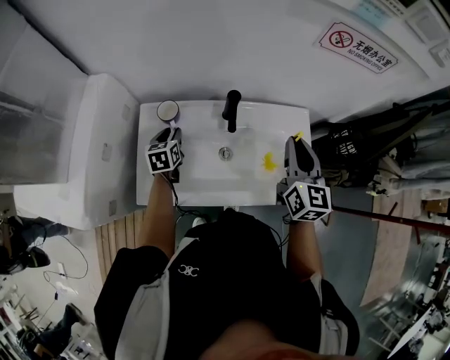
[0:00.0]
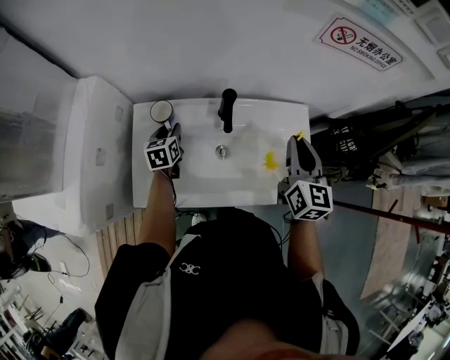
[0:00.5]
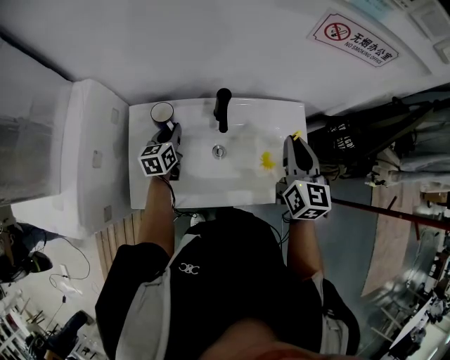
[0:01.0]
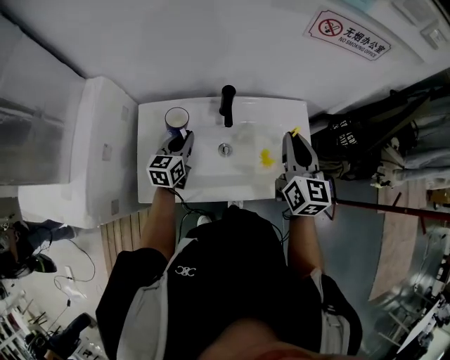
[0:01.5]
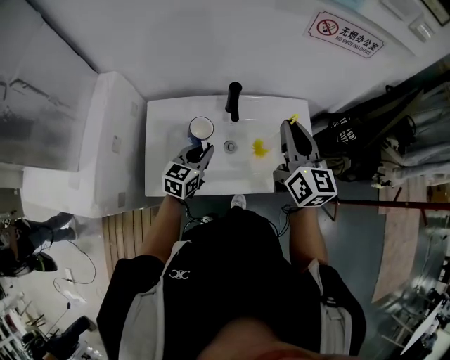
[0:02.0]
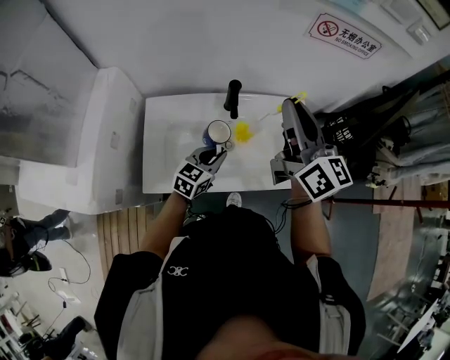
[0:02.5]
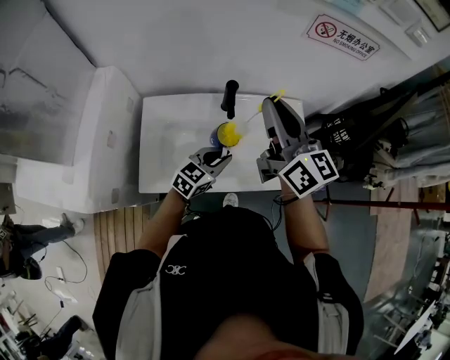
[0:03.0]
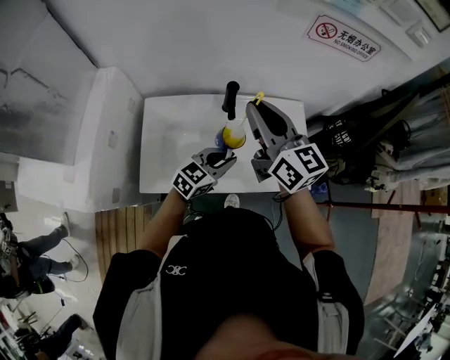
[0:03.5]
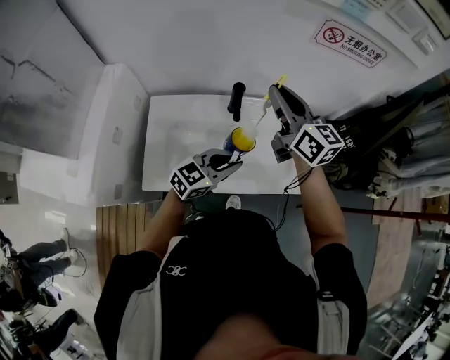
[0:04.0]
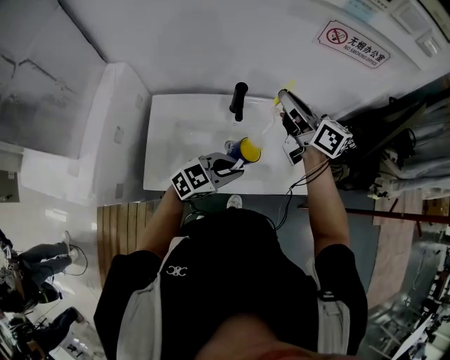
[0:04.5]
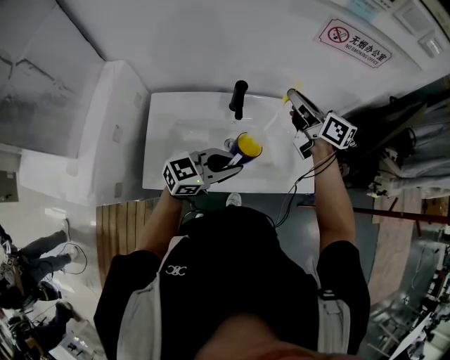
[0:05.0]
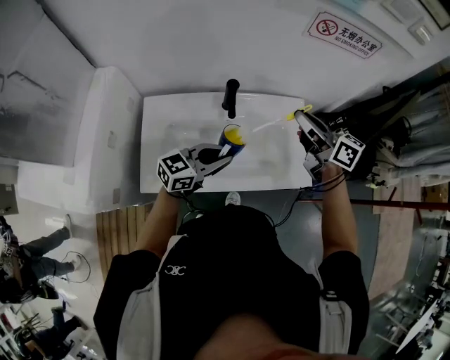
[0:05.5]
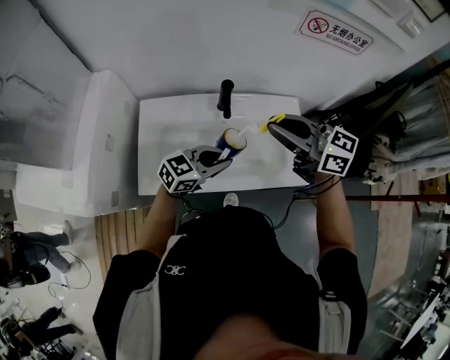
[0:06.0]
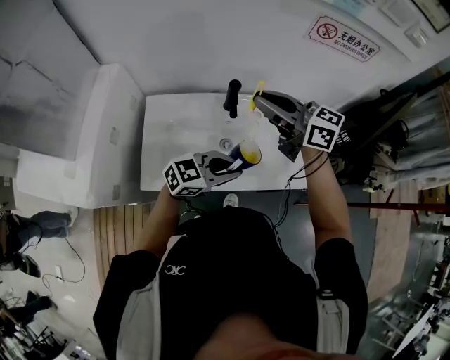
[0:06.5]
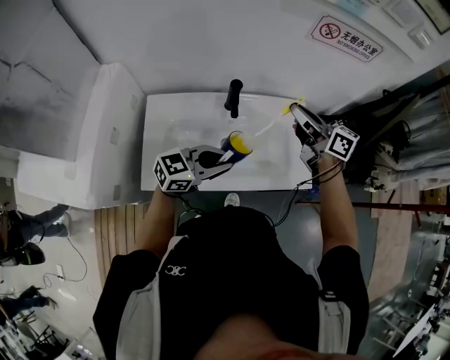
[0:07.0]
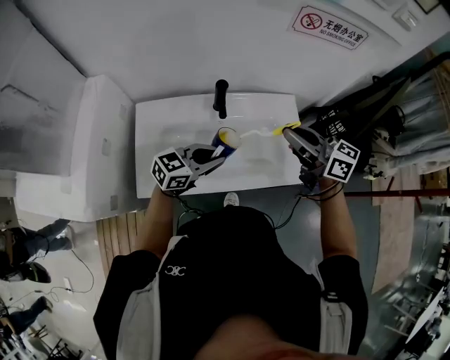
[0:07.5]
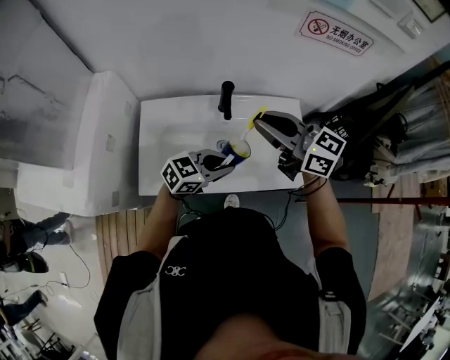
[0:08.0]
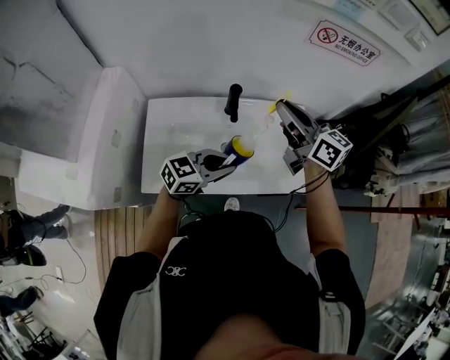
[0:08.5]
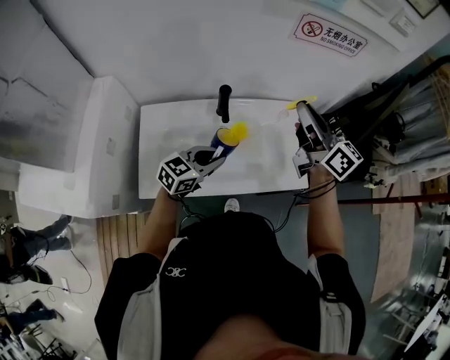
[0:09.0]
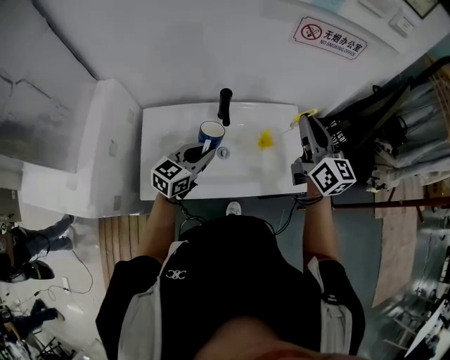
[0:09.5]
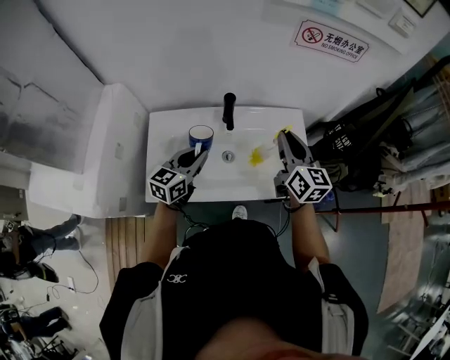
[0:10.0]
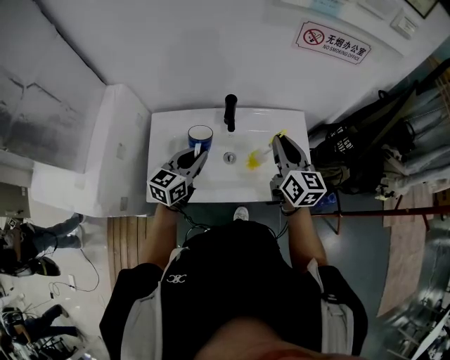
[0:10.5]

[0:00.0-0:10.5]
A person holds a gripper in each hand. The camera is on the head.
0:00.0 to 0:02.0: The left gripper heads to the right, backward and upward, covering about 15 cm, swivels some 40 degrees, and closes its fingers. The right gripper is displaced upward by some 5 cm.
0:02.0 to 0:04.0: The left gripper goes about 10 cm to the right and upward, and turns by some 30 degrees. Meanwhile the right gripper heads to the left and forward, covering about 10 cm.
0:04.0 to 0:06.5: The right gripper turns by some 30 degrees.
0:06.5 to 0:08.5: The right gripper changes its angle by about 20 degrees.
0:08.5 to 0:10.5: The left gripper goes some 10 cm to the left, and rotates some 40 degrees. Meanwhile the right gripper goes roughly 10 cm downward and to the right, and rotates approximately 20 degrees.

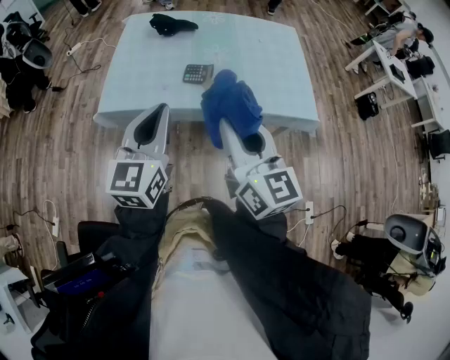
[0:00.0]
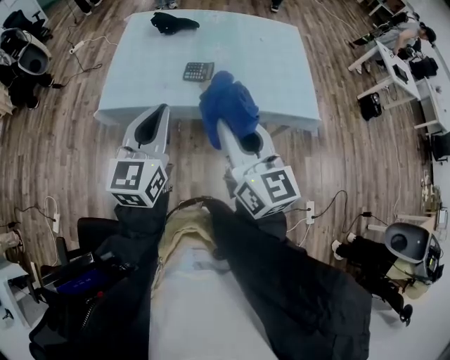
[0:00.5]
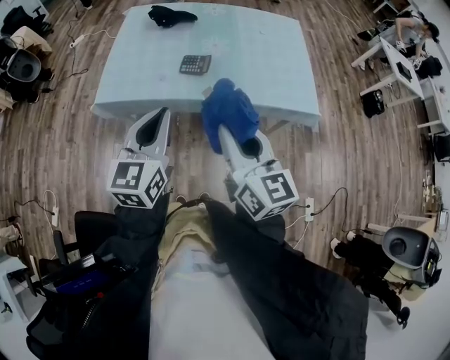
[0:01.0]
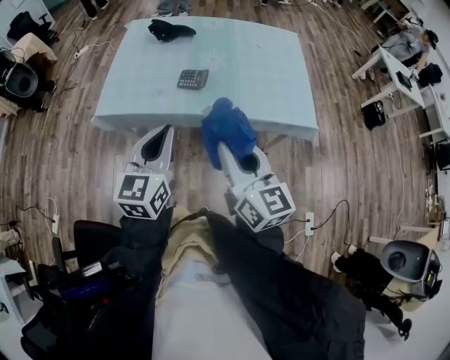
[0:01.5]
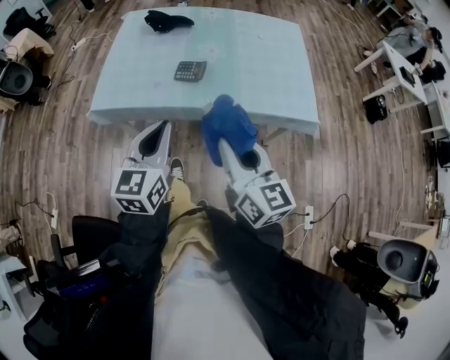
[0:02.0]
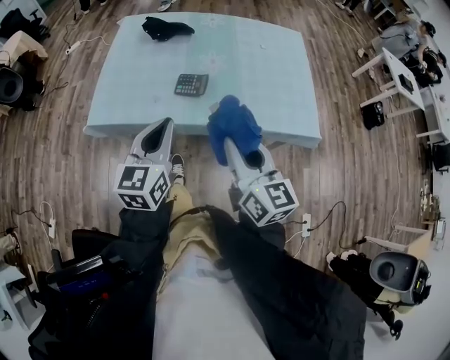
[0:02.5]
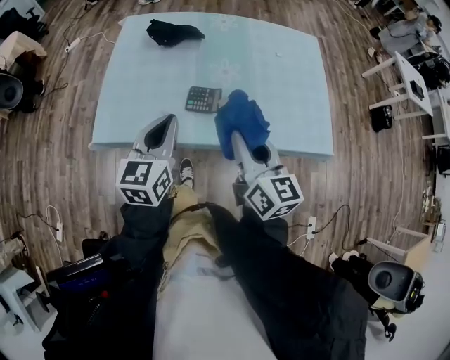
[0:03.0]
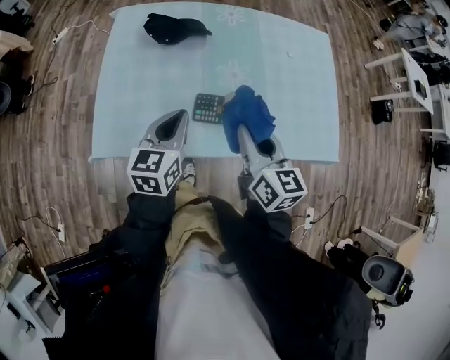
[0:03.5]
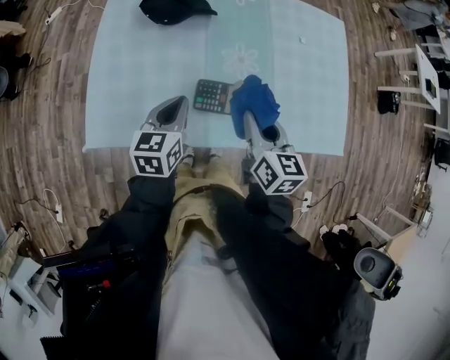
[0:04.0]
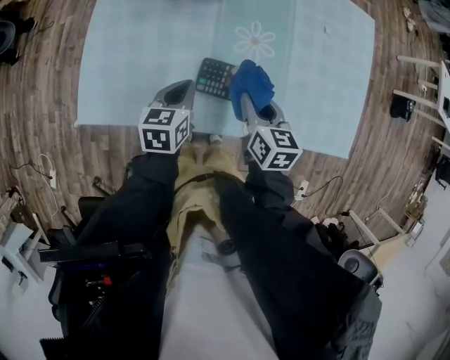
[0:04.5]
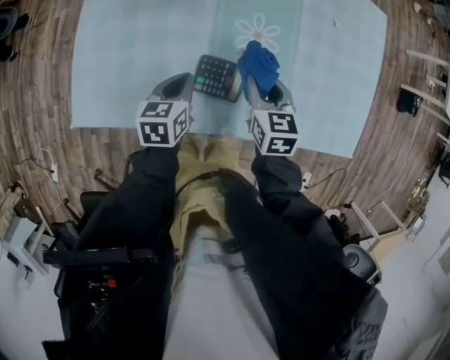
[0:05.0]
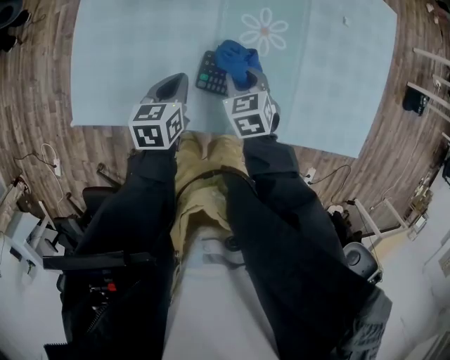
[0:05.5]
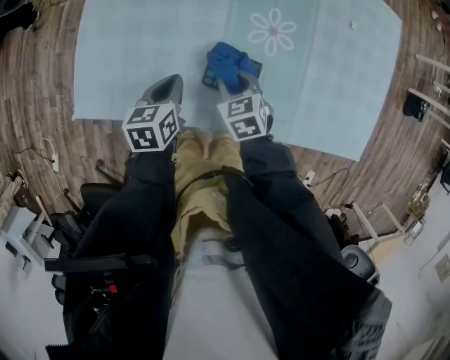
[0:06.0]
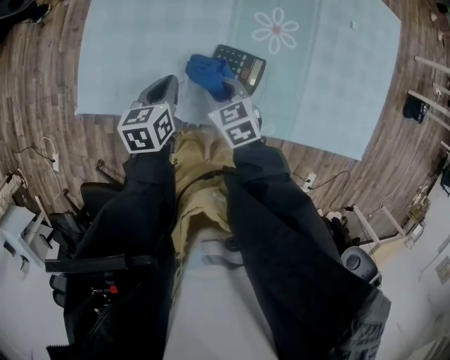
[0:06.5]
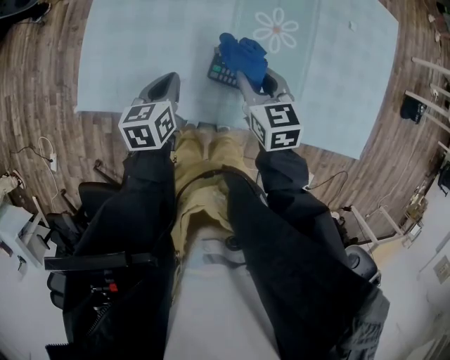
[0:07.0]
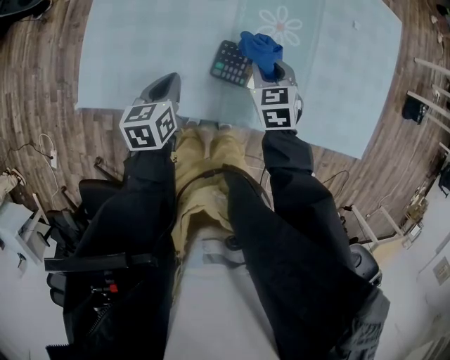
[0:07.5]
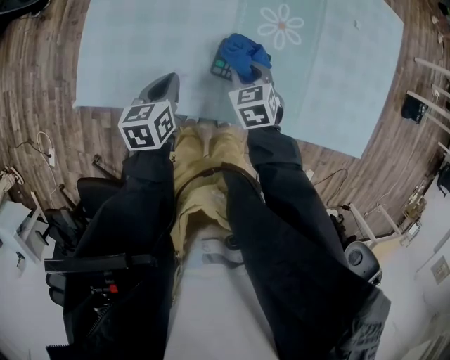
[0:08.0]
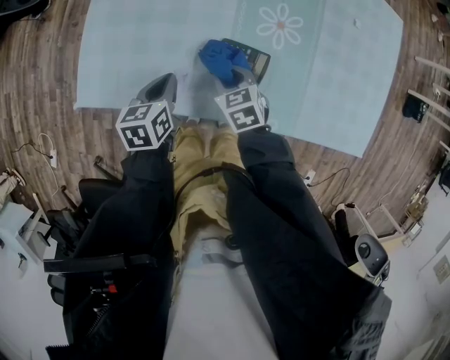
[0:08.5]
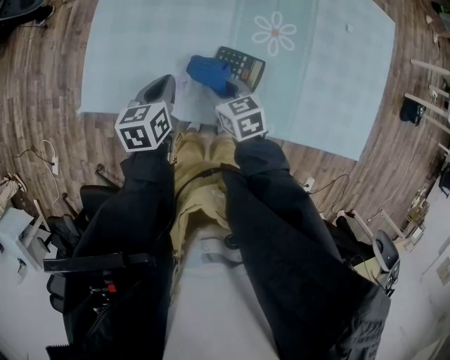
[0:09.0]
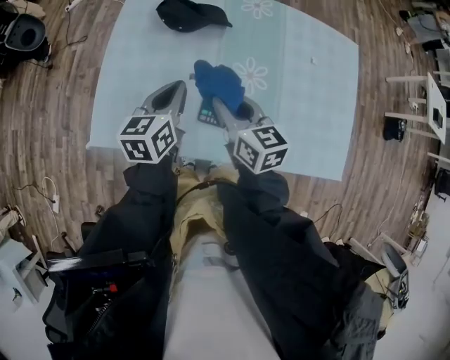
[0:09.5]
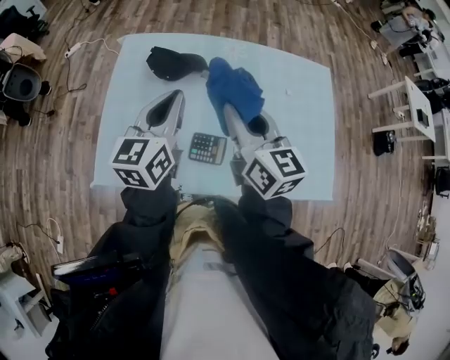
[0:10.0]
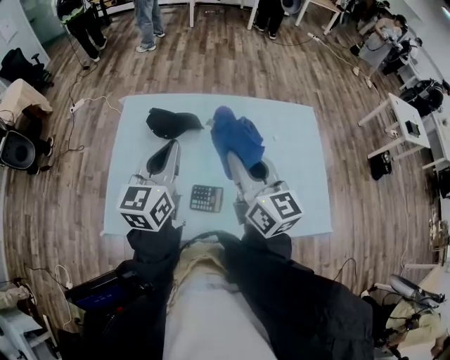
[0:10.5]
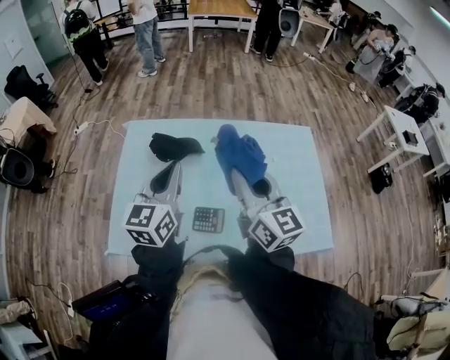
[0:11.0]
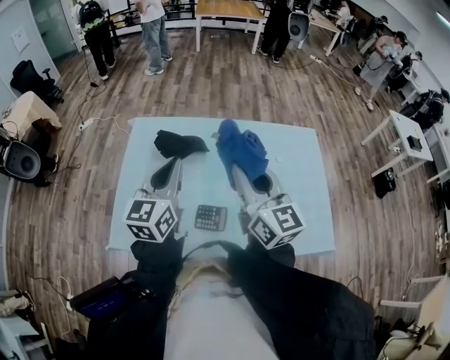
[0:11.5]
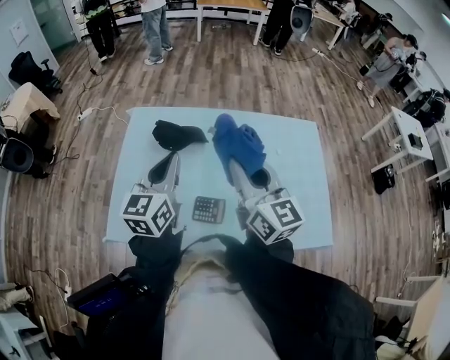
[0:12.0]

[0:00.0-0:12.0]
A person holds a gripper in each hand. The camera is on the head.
0:00.0 to 0:02.0: Both grippers move downward and to the right, approximately 10 cm.
0:02.0 to 0:04.0: The left gripper heads forward and downward, covering roughly 40 cm, and swivels some 20 degrees. The right gripper is displaced forward by approximately 35 cm, and rotates roughly 30 degrees.
0:04.0 to 0:06.0: The left gripper heads downward and to the left, covering about 15 cm, and rotates about 20 degrees. Meanwhile the right gripper goes about 25 cm downward and to the left, and turns by some 50 degrees.
0:06.0 to 0:08.0: The right gripper moves left and right over roughly 10 cm, changing direction 2 times.
0:08.0 to 0:10.0: Both grippers move upward, approximately 35 cm. The left gripper points its fingers approximately 40 degrees further upward; the right gripper tilts its fingers approximately 50 degrees upward.
0:10.0 to 0:12.0: The right gripper travels upward by approximately 5 cm.

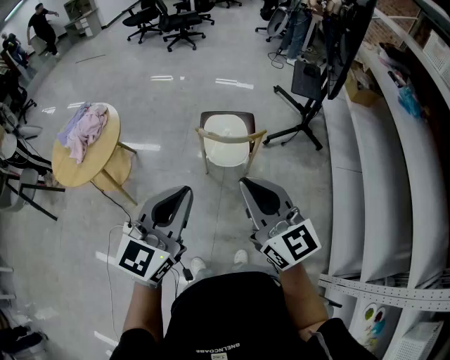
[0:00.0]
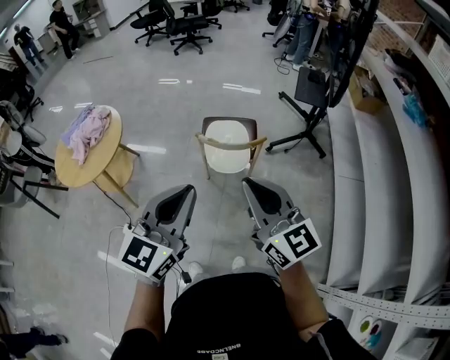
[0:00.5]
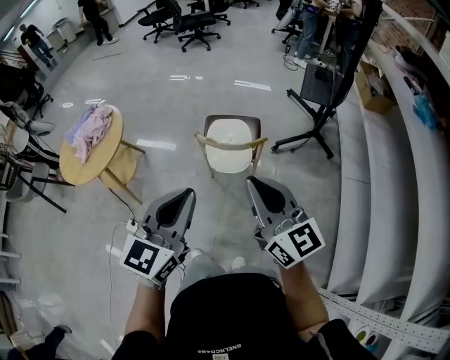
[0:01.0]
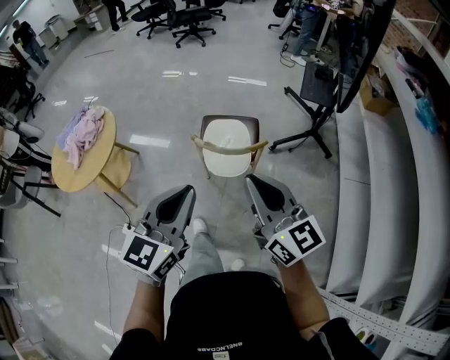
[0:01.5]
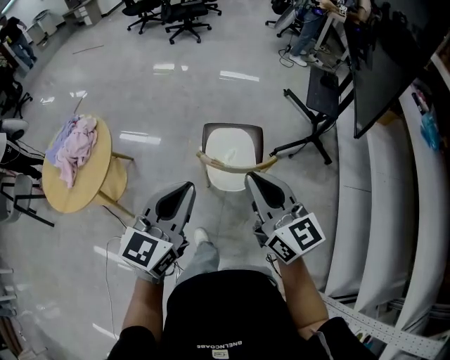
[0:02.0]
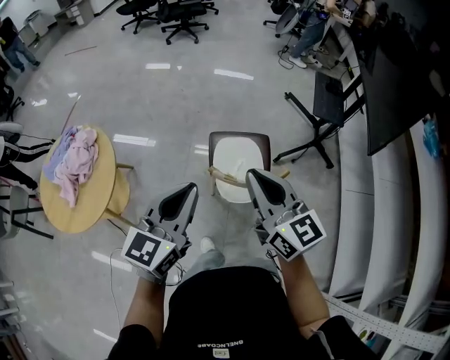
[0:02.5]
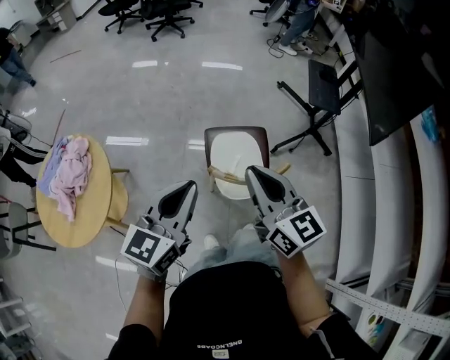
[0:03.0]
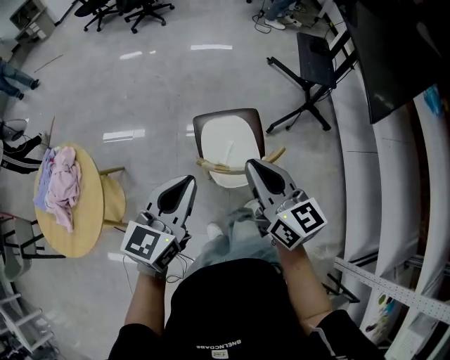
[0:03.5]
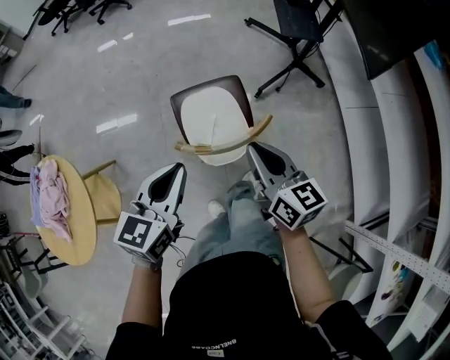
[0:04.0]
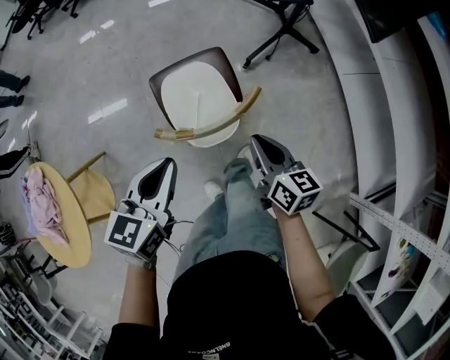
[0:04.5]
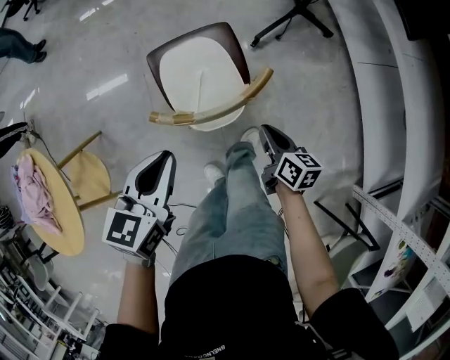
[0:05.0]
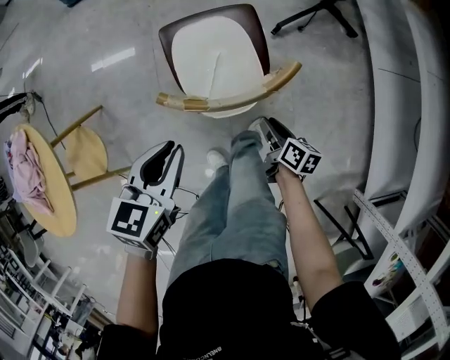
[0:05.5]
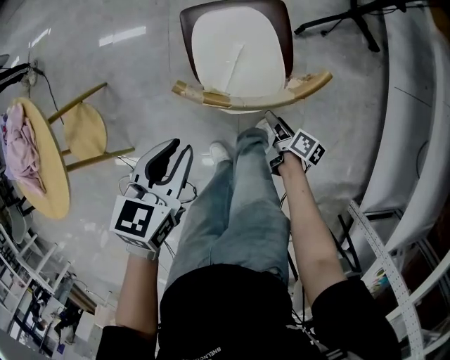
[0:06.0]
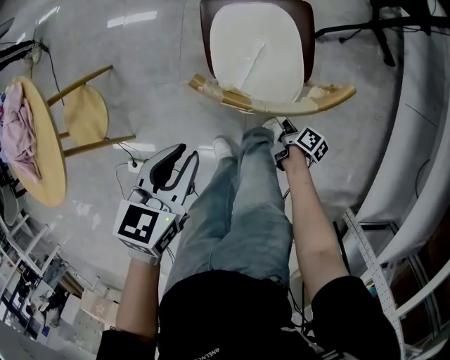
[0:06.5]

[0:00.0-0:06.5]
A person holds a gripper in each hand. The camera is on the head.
0:00.0 to 0:02.0: The grippers both shift forward by roughly 20 cm.
0:02.0 to 0:04.5: The left gripper travels downward and forward by approximately 25 cm, and turns by roughly 30 degrees, while the right gripper heads downward, covering roughly 30 cm, and rotates approximately 40 degrees.
0:04.5 to 0:06.5: The right gripper heads downward, covering roughly 35 cm, rotates around the line of its fingers by about 40 degrees, clockwise from behind, and opens. Meanwhile the left gripper moves downward and to the left, roughly 15 cm, and changes its angle by approximately 20 degrees.
